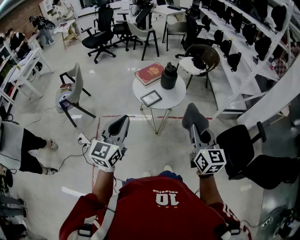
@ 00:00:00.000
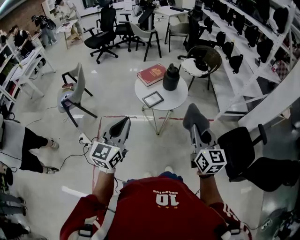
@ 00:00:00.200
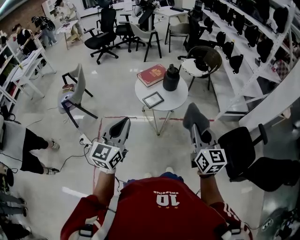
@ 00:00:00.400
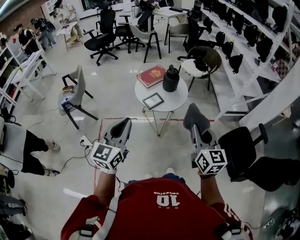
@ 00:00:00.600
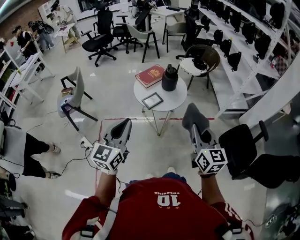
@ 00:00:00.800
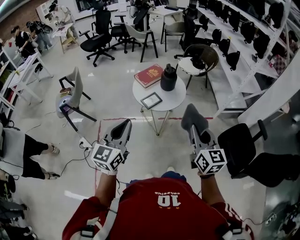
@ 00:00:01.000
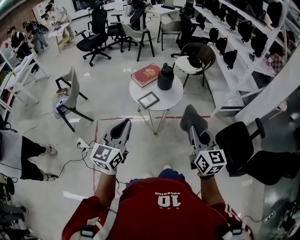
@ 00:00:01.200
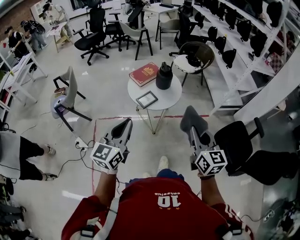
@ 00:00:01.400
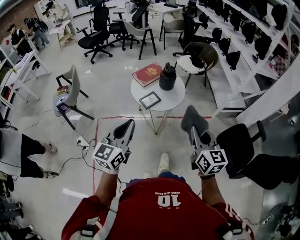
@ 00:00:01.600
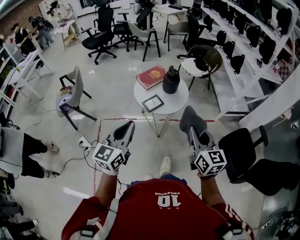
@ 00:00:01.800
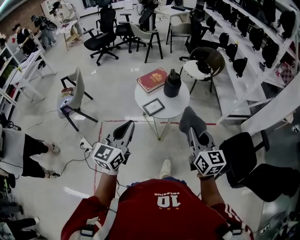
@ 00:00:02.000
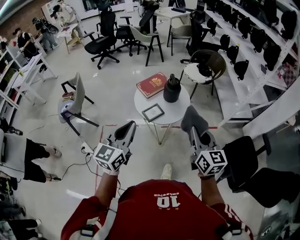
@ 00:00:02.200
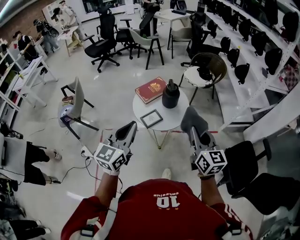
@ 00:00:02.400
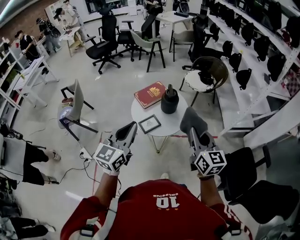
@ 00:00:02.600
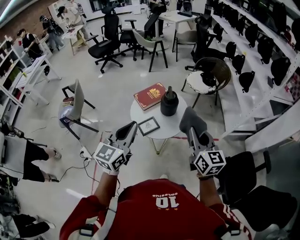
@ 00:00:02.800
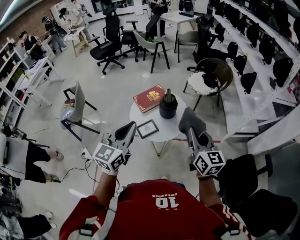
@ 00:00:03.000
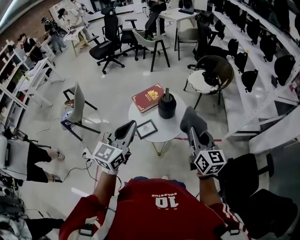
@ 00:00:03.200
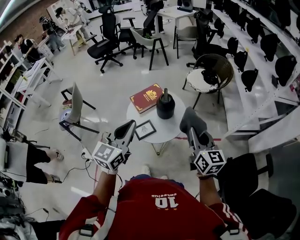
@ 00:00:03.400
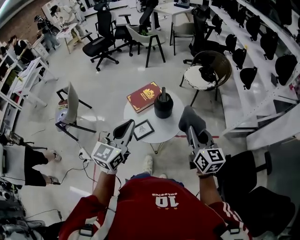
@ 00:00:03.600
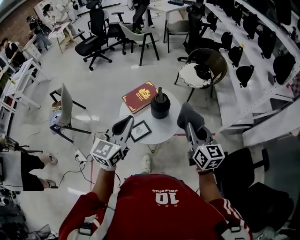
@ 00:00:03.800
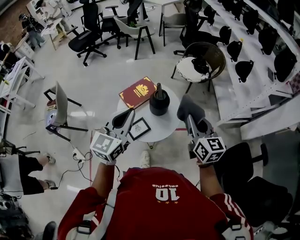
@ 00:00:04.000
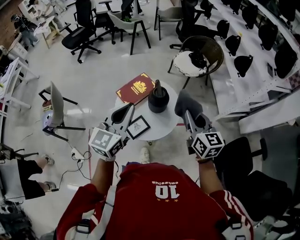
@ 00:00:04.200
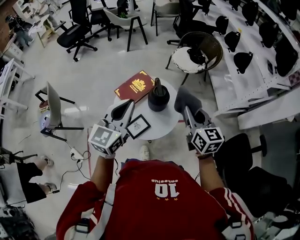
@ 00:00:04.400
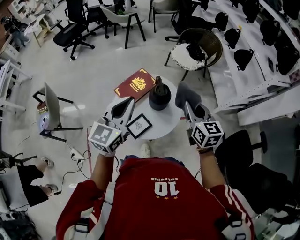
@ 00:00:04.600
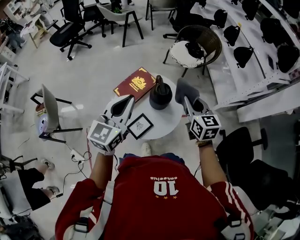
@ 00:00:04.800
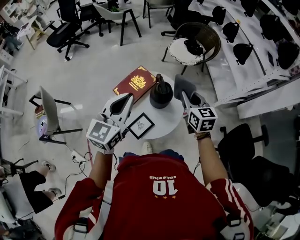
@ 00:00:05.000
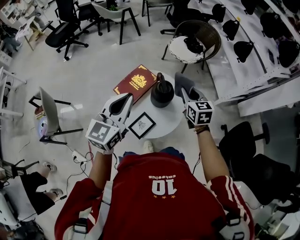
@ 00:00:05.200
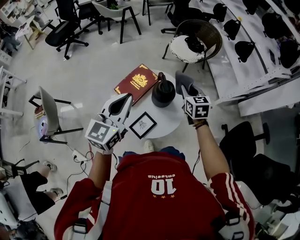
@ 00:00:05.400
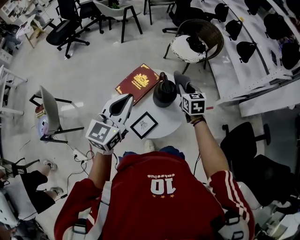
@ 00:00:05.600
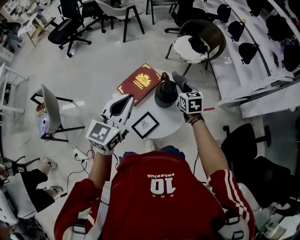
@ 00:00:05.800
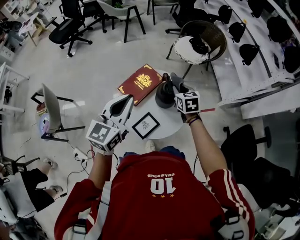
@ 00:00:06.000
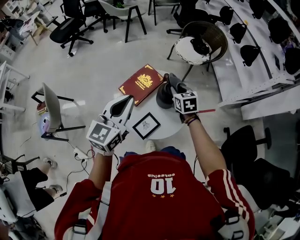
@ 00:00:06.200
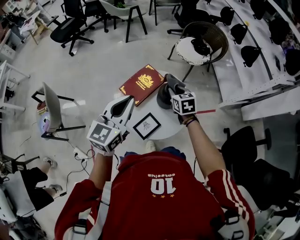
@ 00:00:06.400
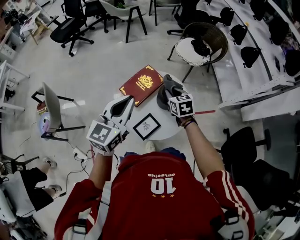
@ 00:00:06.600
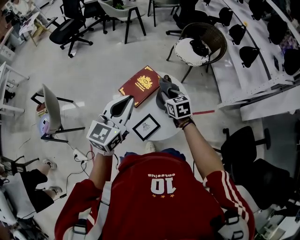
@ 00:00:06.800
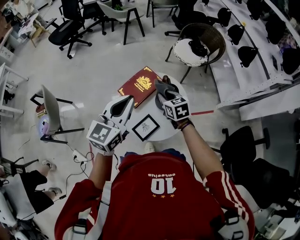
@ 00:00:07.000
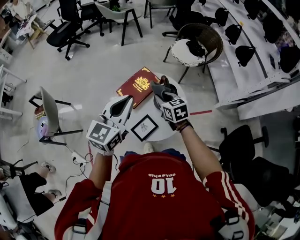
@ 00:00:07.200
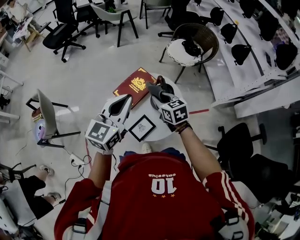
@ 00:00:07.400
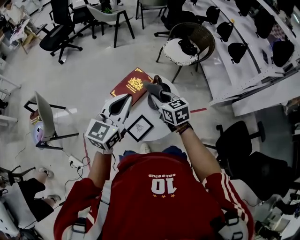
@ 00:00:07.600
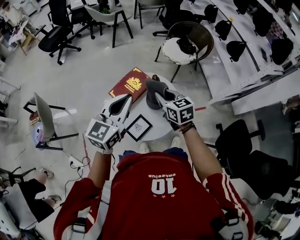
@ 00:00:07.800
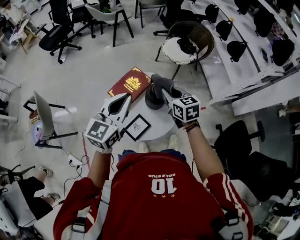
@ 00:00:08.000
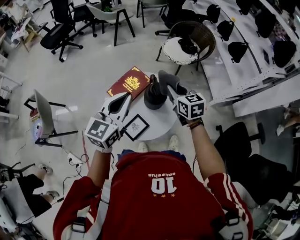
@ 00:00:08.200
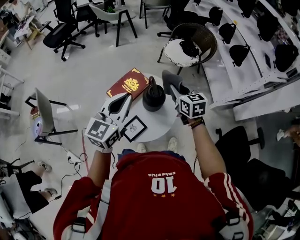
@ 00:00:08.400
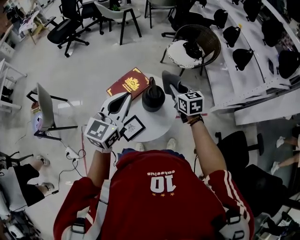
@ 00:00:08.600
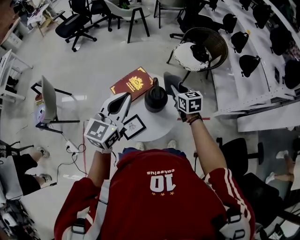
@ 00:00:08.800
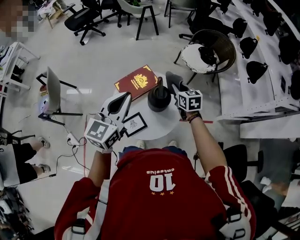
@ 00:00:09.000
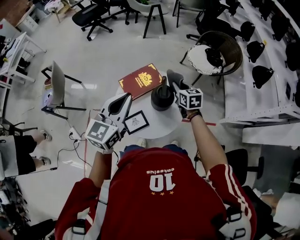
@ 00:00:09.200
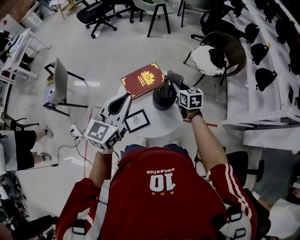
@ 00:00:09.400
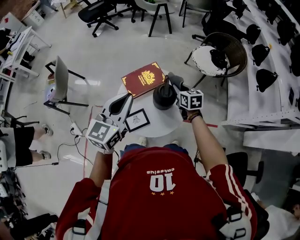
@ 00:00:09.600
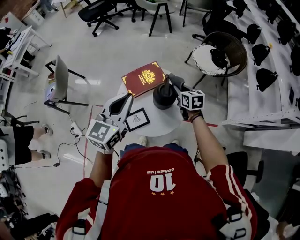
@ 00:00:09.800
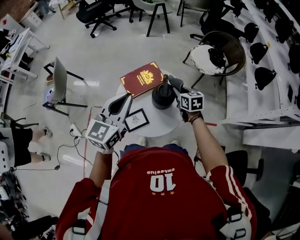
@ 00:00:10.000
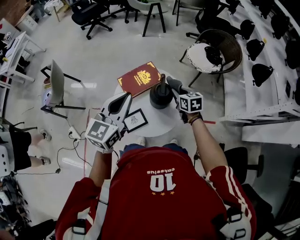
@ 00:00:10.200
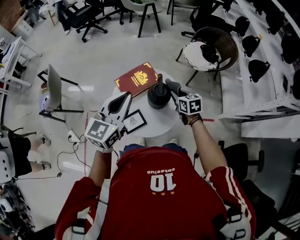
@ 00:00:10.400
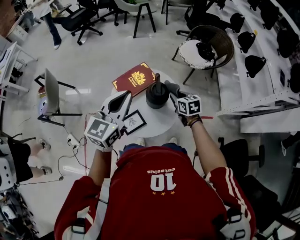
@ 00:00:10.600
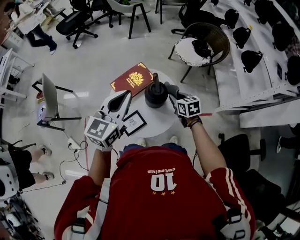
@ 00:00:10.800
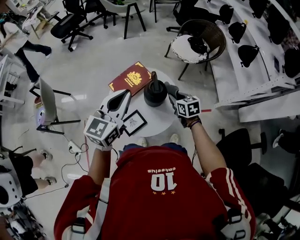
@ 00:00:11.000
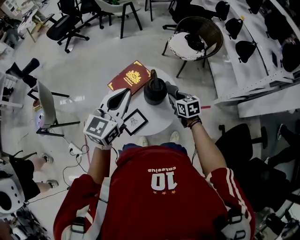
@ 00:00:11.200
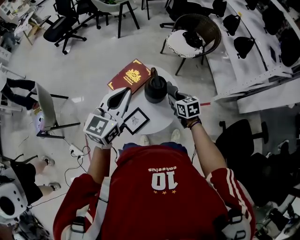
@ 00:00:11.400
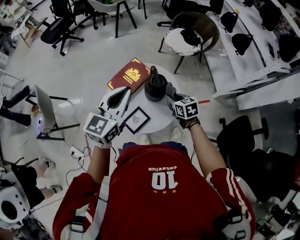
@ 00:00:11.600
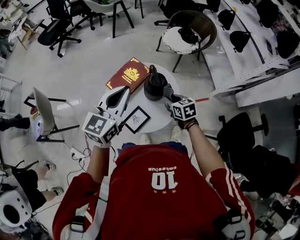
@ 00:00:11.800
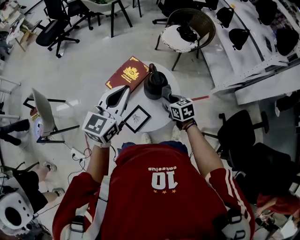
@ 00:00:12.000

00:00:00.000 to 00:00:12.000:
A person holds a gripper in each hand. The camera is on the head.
00:00:00.000 to 00:00:01.600: The grippers make only small movements.
00:00:01.600 to 00:00:03.000: The left gripper goes roughly 25 cm forward and to the right. The right gripper goes roughly 25 cm forward.
00:00:03.000 to 00:00:04.400: The two grippers go some 20 cm forward.
00:00:04.400 to 00:00:06.000: The left gripper is displaced to the left by approximately 5 cm. Meanwhile the right gripper heads downward, forward and to the left, covering approximately 25 cm, and rotates some 30 degrees.
00:00:06.000 to 00:00:07.600: The right gripper is displaced to the left, backward and upward by some 10 cm.
00:00:07.600 to 00:00:09.000: The right gripper shifts some 15 cm to the right and forward.
00:00:09.000 to 00:00:10.400: The right gripper ends up about 5 cm from where it was.
00:00:10.400 to 00:00:12.000: The right gripper goes roughly 10 cm backward.

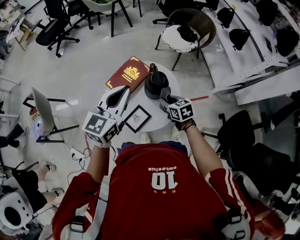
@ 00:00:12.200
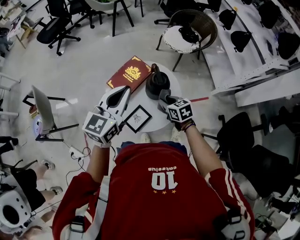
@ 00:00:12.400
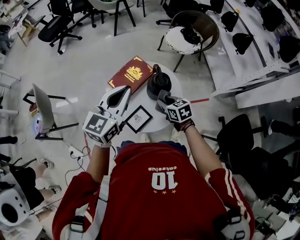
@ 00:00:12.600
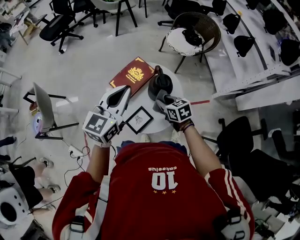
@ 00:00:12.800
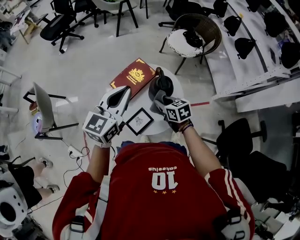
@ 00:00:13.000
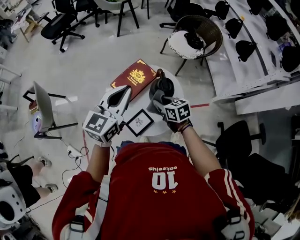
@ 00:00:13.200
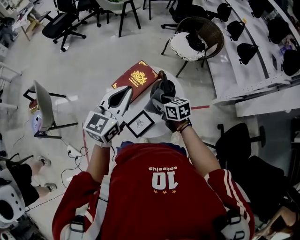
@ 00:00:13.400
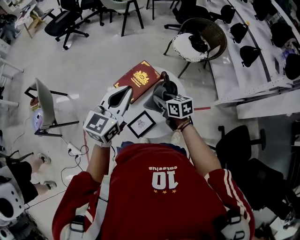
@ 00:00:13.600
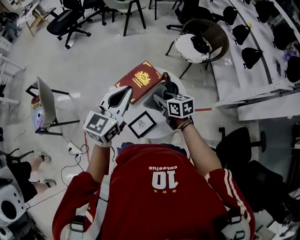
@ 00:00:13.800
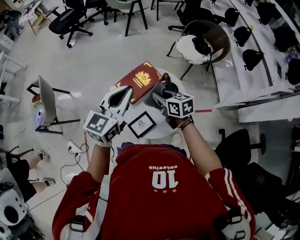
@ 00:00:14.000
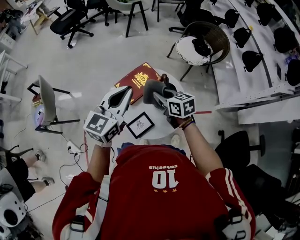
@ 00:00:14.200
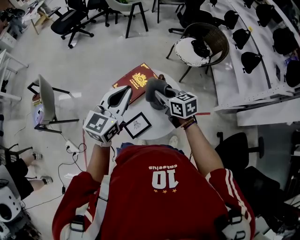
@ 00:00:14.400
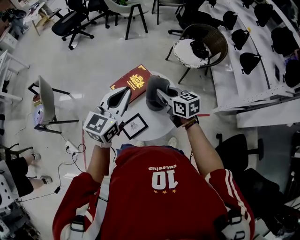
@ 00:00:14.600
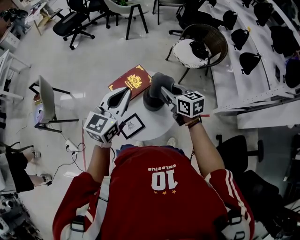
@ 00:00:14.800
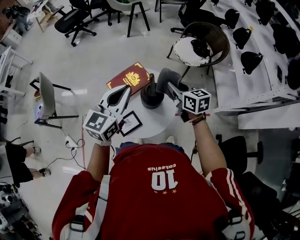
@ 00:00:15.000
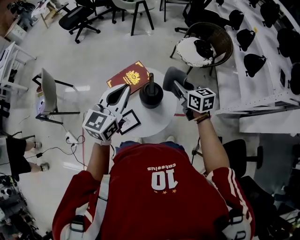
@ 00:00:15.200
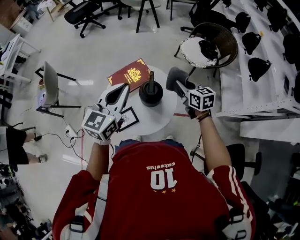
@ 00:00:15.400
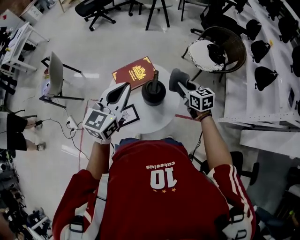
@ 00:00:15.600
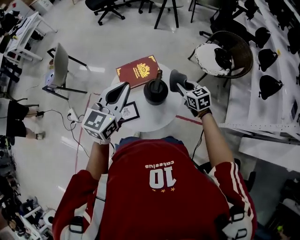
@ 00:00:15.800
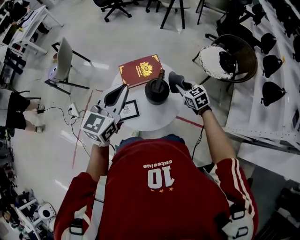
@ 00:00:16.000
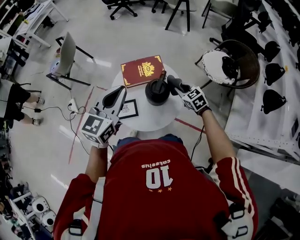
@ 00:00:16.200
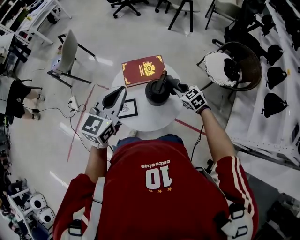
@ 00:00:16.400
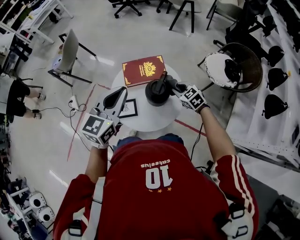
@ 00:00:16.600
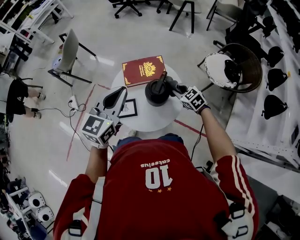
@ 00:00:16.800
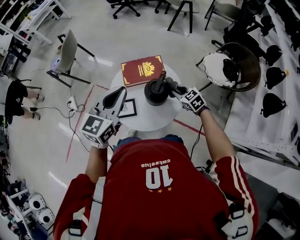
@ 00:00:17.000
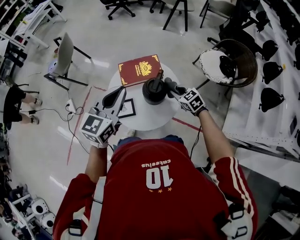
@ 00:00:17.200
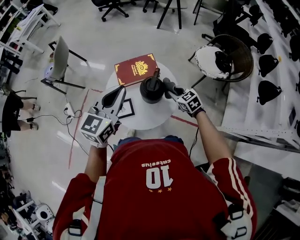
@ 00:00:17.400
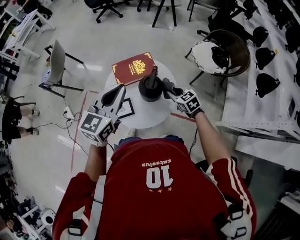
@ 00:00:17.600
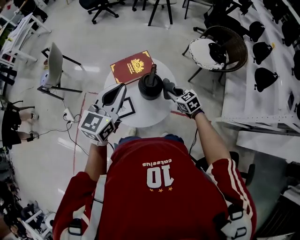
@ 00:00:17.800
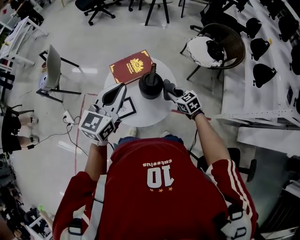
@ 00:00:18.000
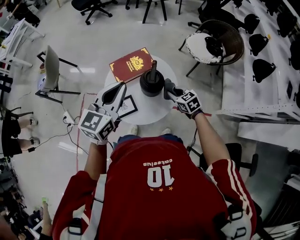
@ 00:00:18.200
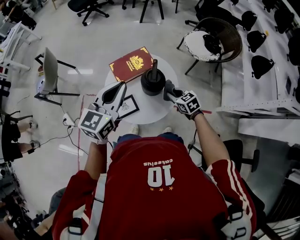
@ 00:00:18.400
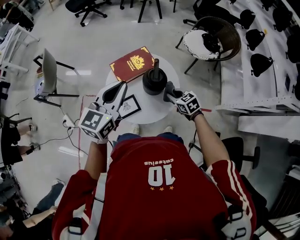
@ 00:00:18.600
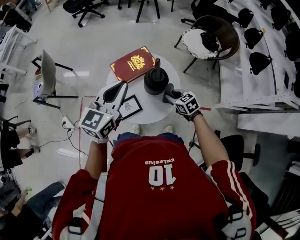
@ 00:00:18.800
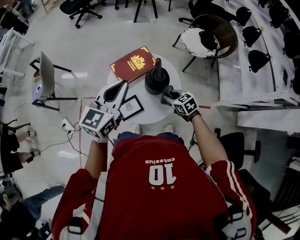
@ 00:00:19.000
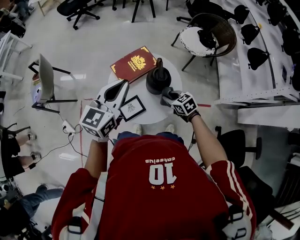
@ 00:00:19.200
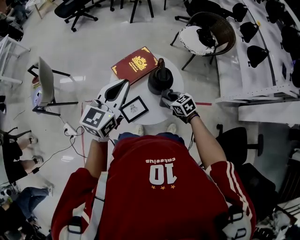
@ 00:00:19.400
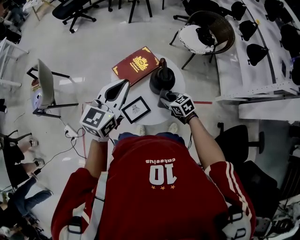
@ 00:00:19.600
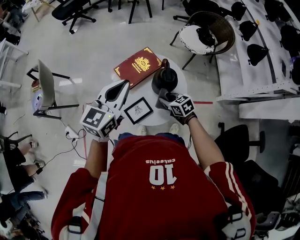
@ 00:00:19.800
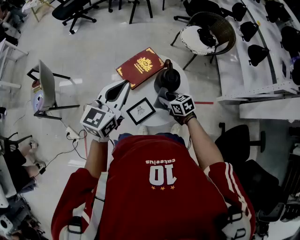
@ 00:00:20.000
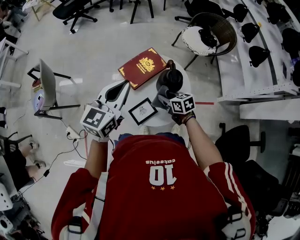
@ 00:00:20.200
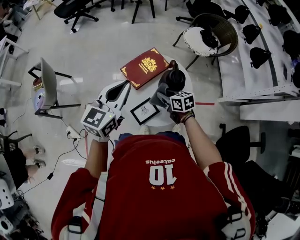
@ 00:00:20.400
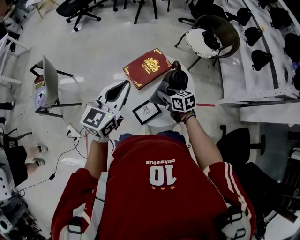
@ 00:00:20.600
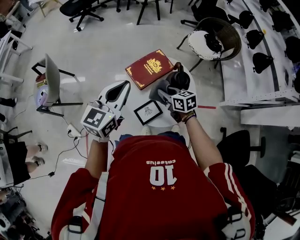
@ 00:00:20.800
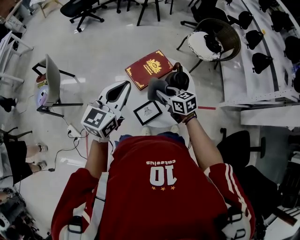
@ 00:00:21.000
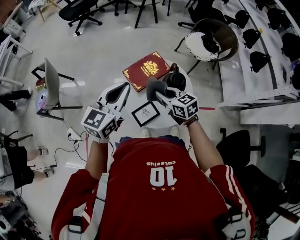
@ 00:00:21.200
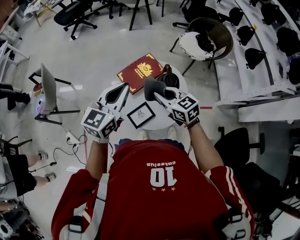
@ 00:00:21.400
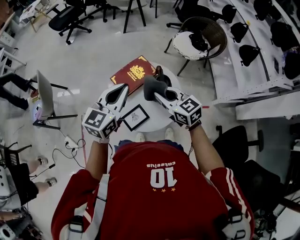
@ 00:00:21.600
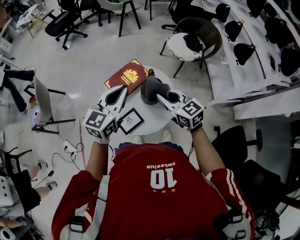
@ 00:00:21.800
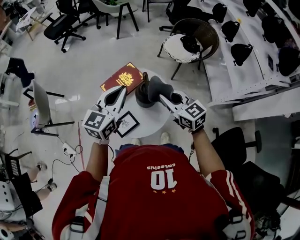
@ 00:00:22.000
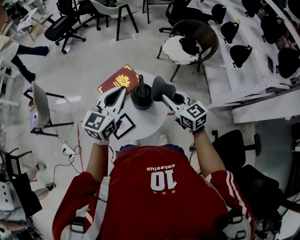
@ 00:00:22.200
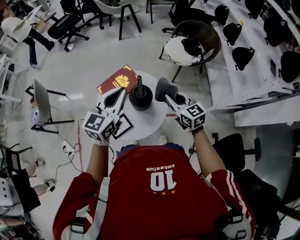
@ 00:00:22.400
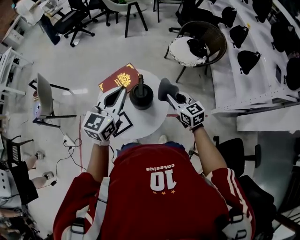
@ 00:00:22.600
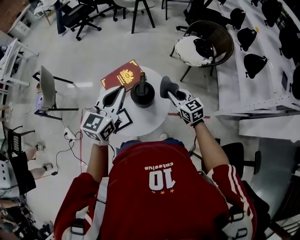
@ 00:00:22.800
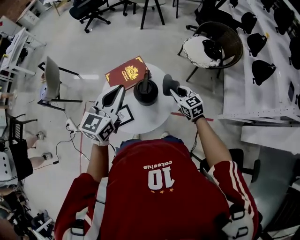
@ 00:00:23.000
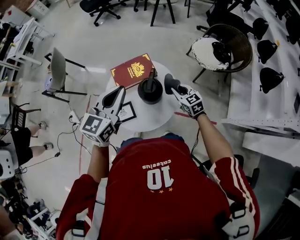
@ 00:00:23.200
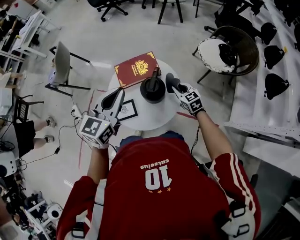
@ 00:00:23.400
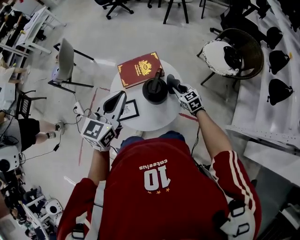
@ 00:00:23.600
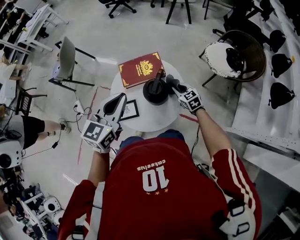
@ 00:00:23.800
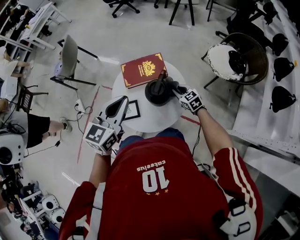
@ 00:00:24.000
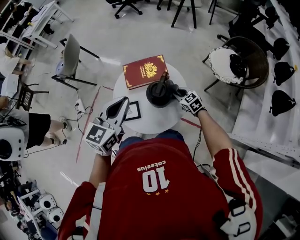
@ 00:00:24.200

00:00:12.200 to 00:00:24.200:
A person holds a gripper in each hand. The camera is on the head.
00:00:12.200 to 00:00:13.800: The left gripper ends up some 5 cm from where it was. Meanwhile the right gripper is displaced to the left, forward and upward by roughly 10 cm.
00:00:13.800 to 00:00:15.200: The right gripper is displaced to the right by some 20 cm. Meanwhile the left gripper shifts approximately 10 cm to the right.
00:00:15.200 to 00:00:16.600: The right gripper travels downward by some 15 cm, and rotates some 60 degrees. The left gripper changes its angle by some 20 degrees.
00:00:16.600 to 00:00:18.200: The right gripper heads backward, covering approximately 10 cm, and turns by roughly 30 degrees.
00:00:18.200 to 00:00:19.800: The right gripper moves to the left, approximately 15 cm. The left gripper moves to the left, about 10 cm.
00:00:19.800 to 00:00:21.200: The left gripper moves to the left, about 5 cm, while the right gripper goes roughly 15 cm upward and to the left.
00:00:21.200 to 00:00:22.600: Both grippers move to the right, roughly 25 cm.
00:00:22.600 to 00:00:24.200: The left gripper moves roughly 5 cm, and swivels some 20 degrees; the right gripper heads downward, covering about 20 cm, and turns by approximately 40 degrees.
